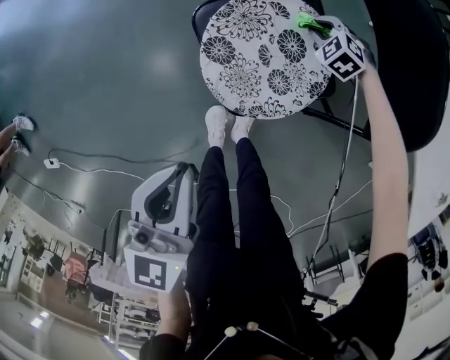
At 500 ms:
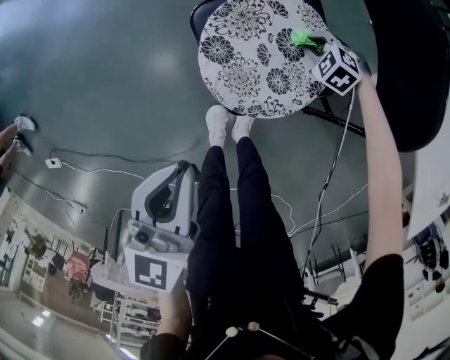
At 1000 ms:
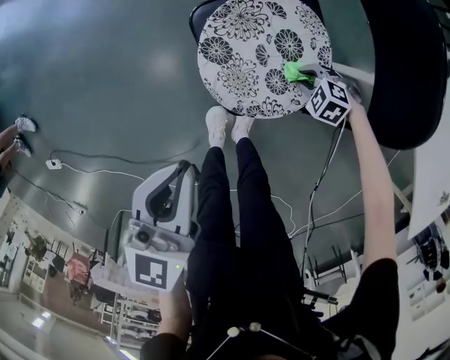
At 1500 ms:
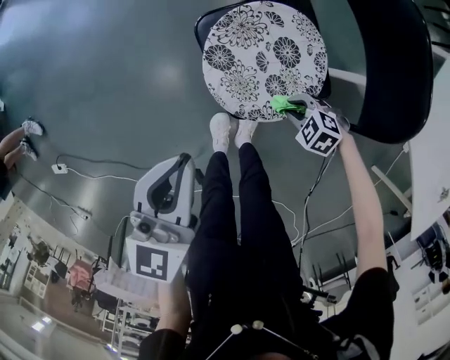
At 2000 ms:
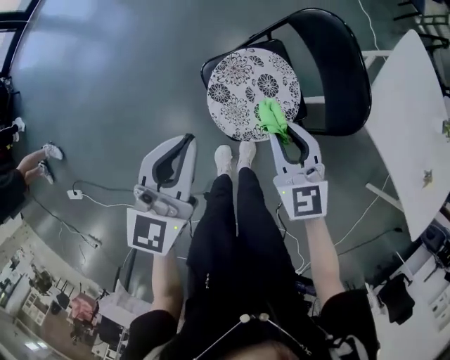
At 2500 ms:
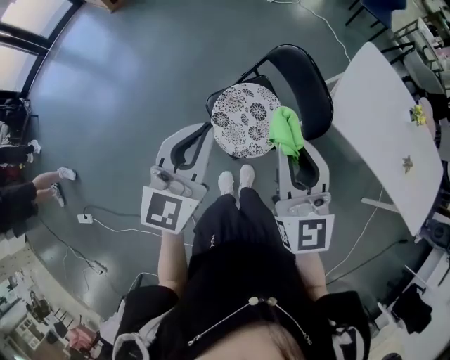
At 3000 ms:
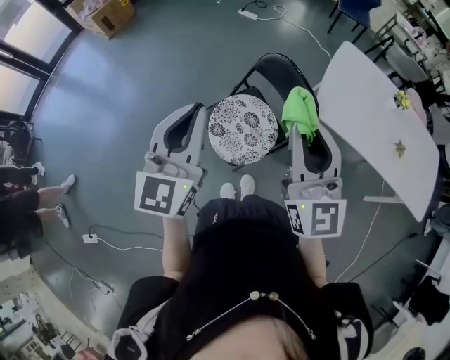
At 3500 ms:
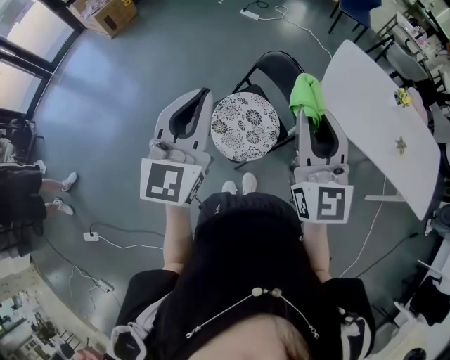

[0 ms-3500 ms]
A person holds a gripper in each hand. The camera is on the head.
0 ms to 2000 ms: The right gripper moves upward, roughly 40 cm, and points its fingers approximately 50 degrees further upward, while the left gripper shifts roughly 15 cm upward.
2000 ms to 3500 ms: Both grippers move upward, some 30 cm. The right gripper points its fingers about 30 degrees further upward.

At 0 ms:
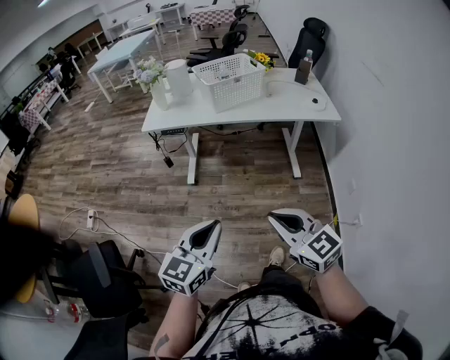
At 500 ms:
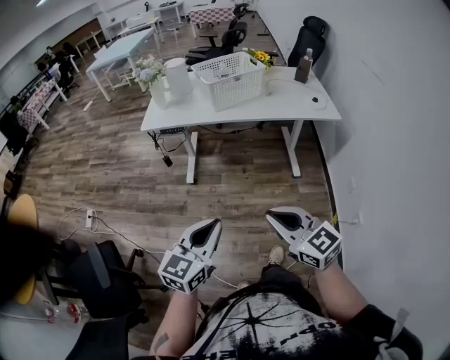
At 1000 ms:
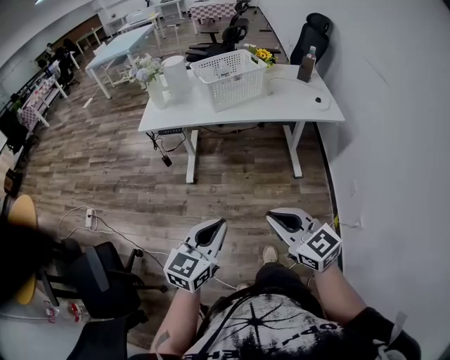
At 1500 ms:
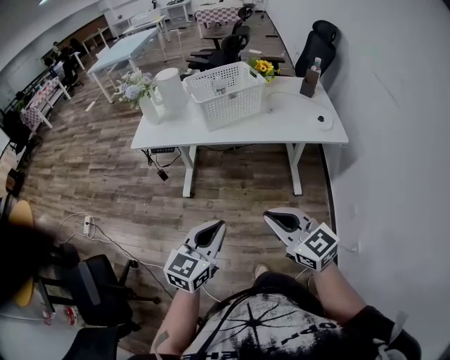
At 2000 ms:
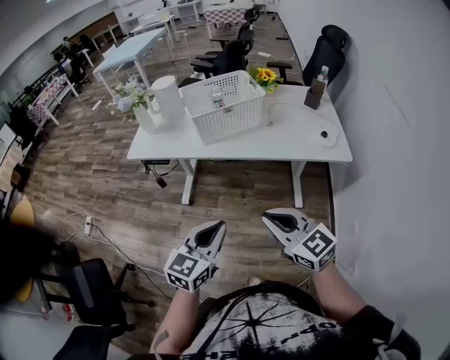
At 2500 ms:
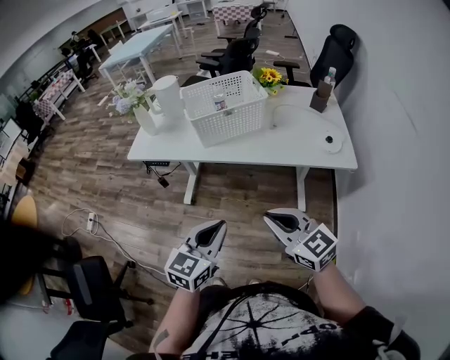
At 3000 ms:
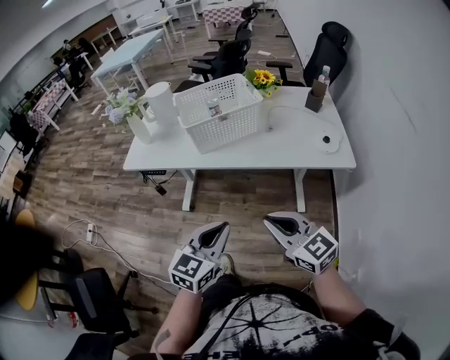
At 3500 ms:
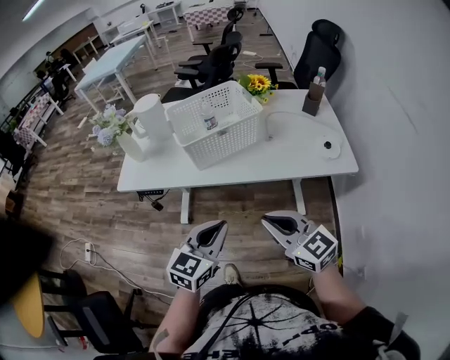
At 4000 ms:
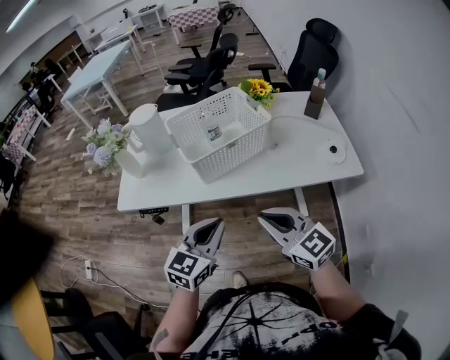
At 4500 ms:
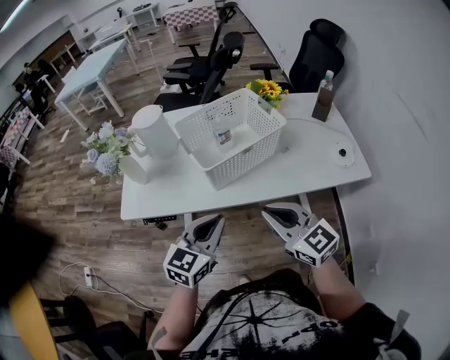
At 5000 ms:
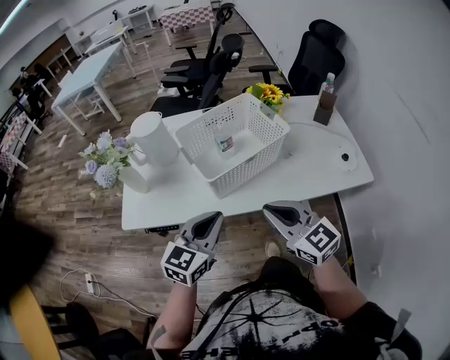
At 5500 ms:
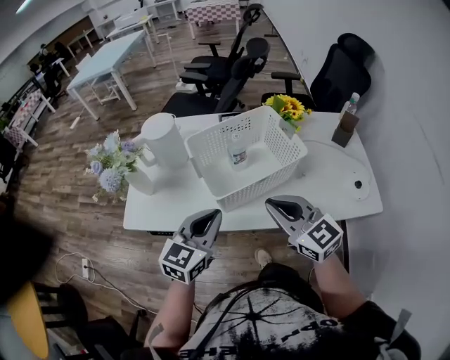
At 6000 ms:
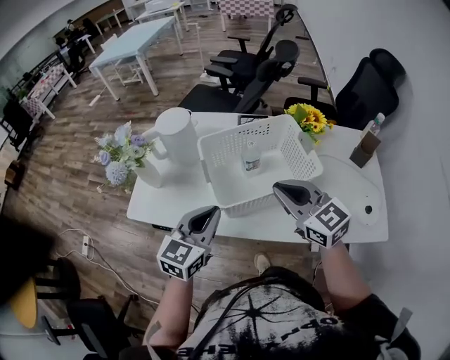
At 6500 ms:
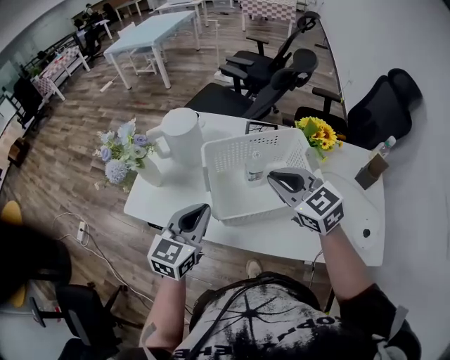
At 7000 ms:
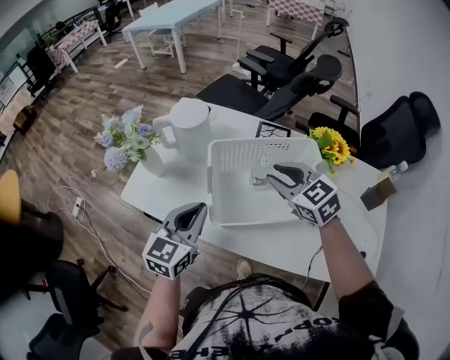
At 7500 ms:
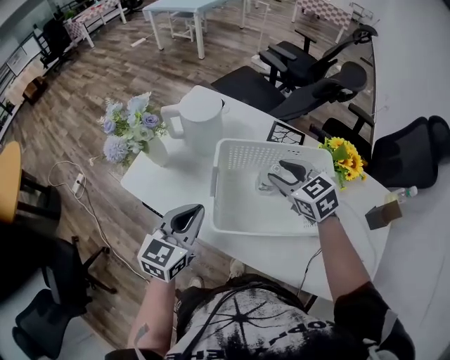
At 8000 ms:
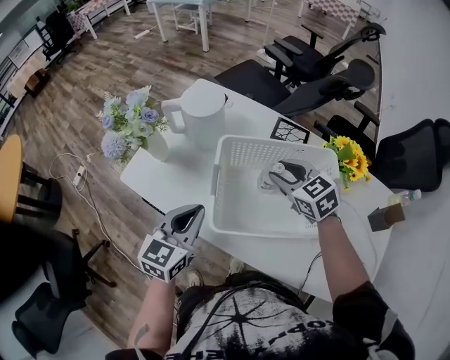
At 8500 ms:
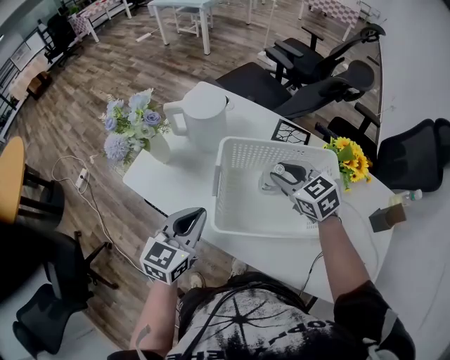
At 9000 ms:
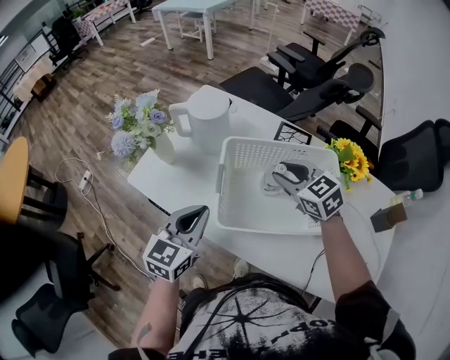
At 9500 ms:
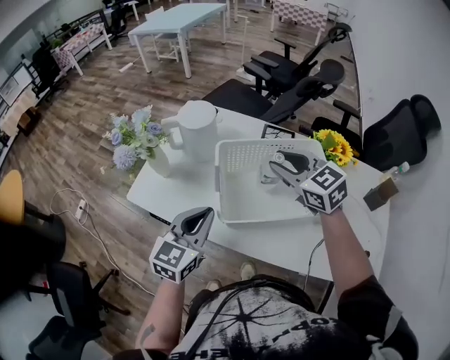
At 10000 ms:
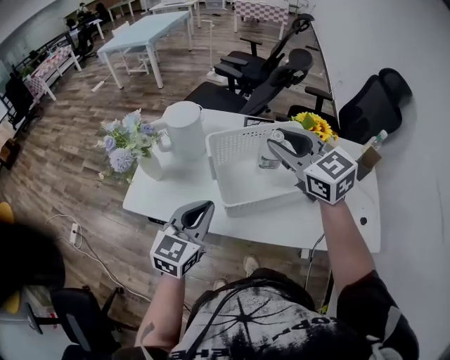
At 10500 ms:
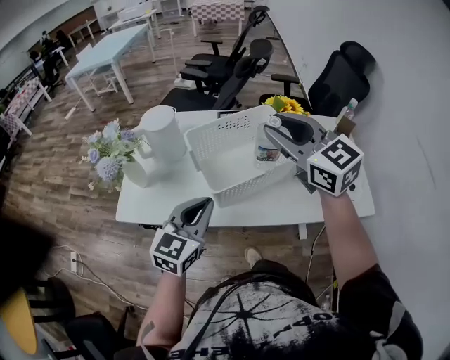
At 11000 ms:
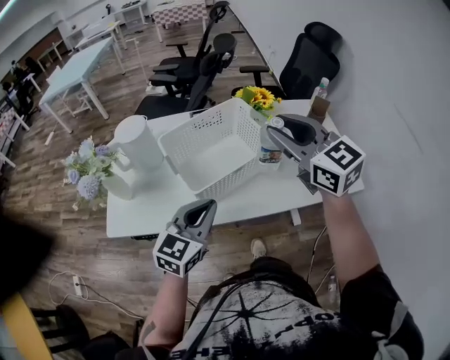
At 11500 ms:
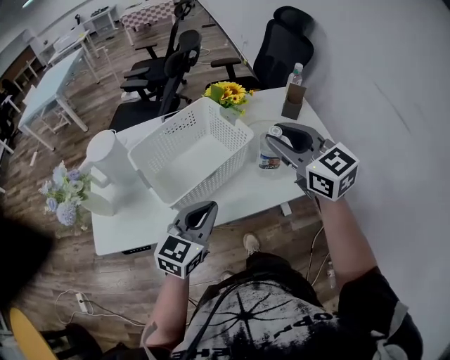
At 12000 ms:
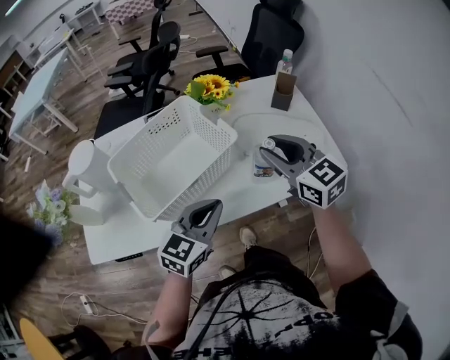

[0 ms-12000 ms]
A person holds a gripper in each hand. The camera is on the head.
0 ms to 2000 ms: Both grippers travel together forward and to the right, roughly 30 cm.
2000 ms to 4000 ms: The two grippers go about 20 cm forward.
4000 ms to 6000 ms: The two grippers go roughly 25 cm forward.
6000 ms to 8000 ms: The left gripper is displaced forward by about 5 cm, and swivels about 20 degrees. Meanwhile the right gripper moves forward and downward, some 20 cm, swivels some 30 degrees, and opens.
8000 ms to 10000 ms: The right gripper shifts about 20 cm upward and backward, and changes its angle by approximately 30 degrees. The left gripper travels upward by about 5 cm, and rotates roughly 20 degrees.
10000 ms to 12000 ms: The right gripper changes place by roughly 30 cm, and turns by about 30 degrees, while the left gripper shifts by approximately 25 cm, and turns by approximately 30 degrees.

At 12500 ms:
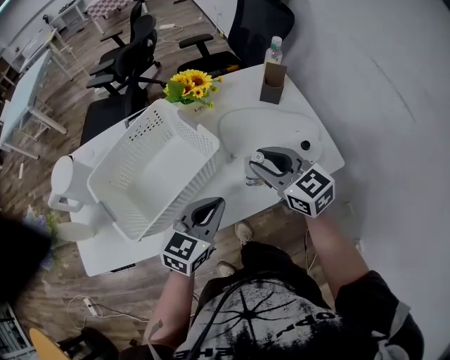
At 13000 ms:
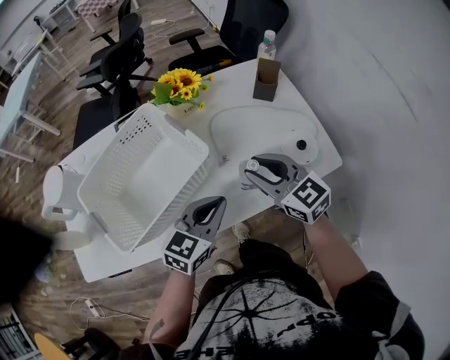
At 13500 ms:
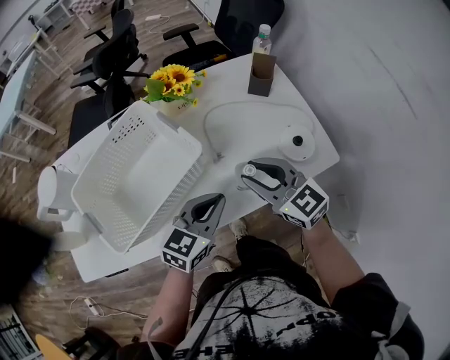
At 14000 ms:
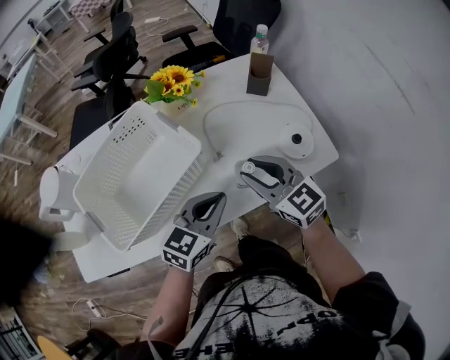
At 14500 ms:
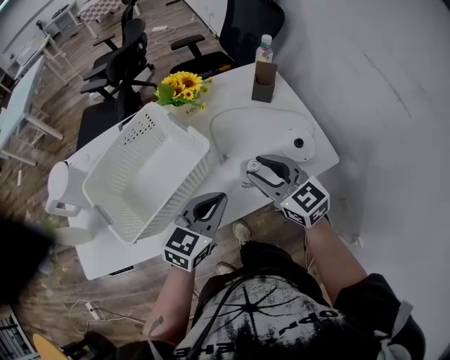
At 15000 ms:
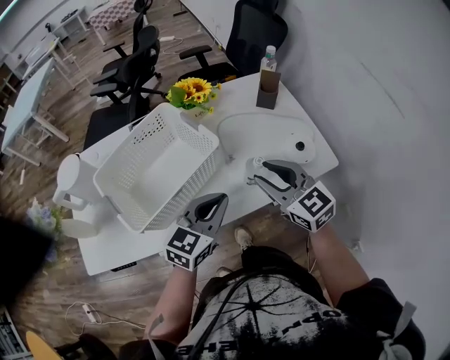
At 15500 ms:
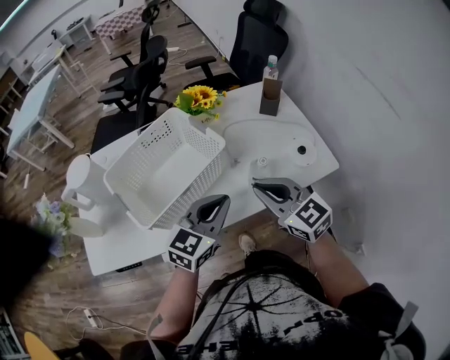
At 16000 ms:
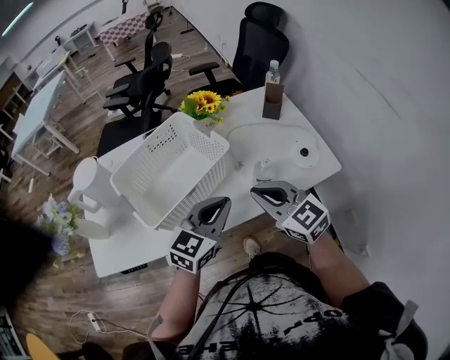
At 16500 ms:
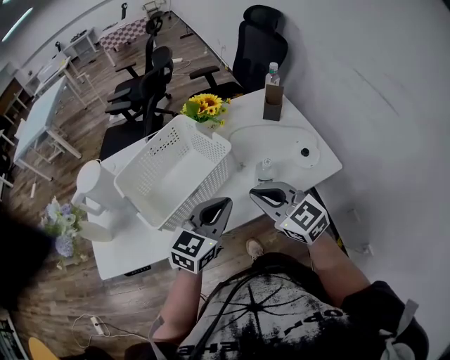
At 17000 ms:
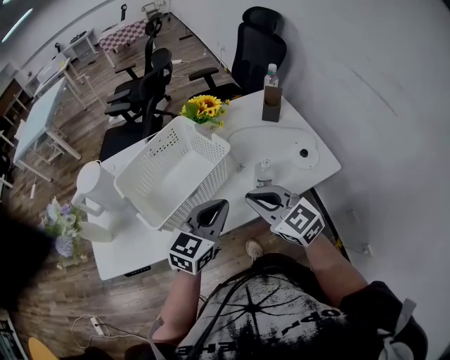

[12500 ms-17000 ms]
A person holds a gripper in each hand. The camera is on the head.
12500 ms to 14500 ms: The grippers move only a little.
14500 ms to 17000 ms: The left gripper shifts approximately 10 cm backward and to the left, while the right gripper travels backward and to the left by approximately 15 cm, and closes.

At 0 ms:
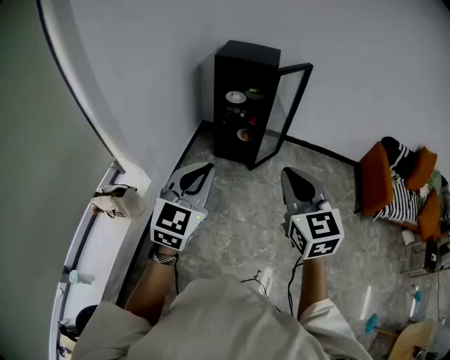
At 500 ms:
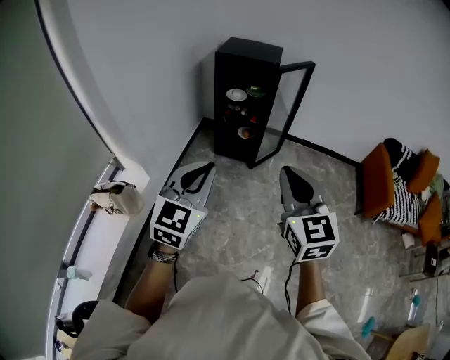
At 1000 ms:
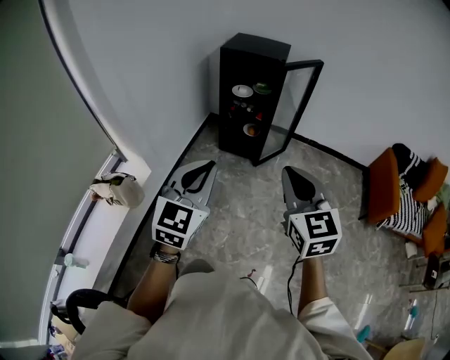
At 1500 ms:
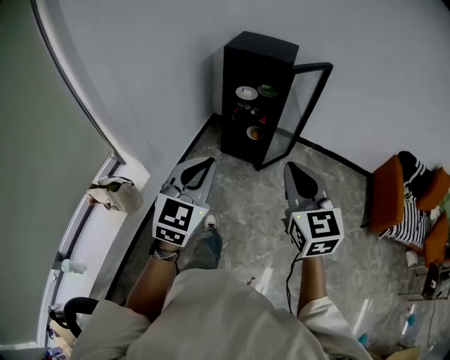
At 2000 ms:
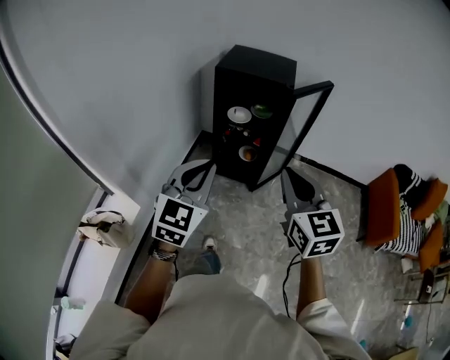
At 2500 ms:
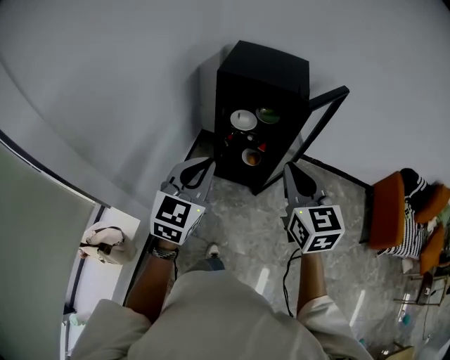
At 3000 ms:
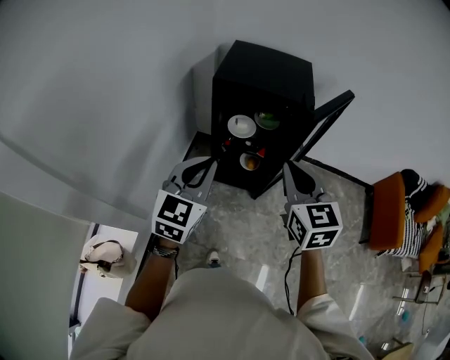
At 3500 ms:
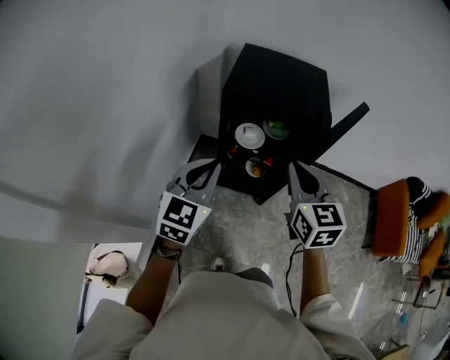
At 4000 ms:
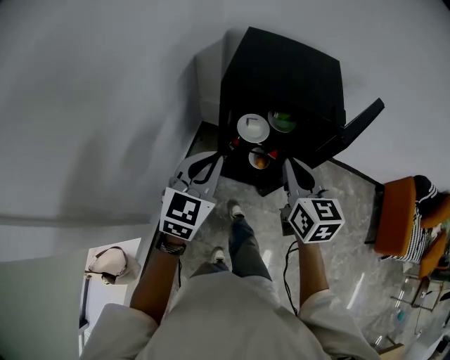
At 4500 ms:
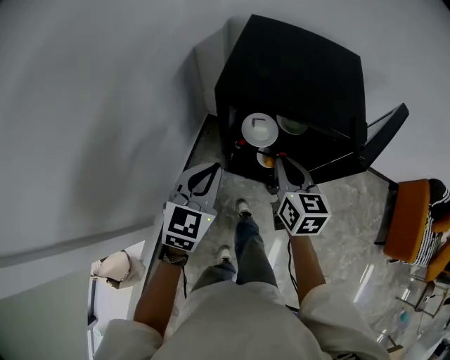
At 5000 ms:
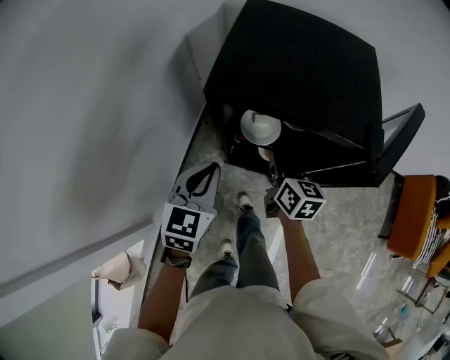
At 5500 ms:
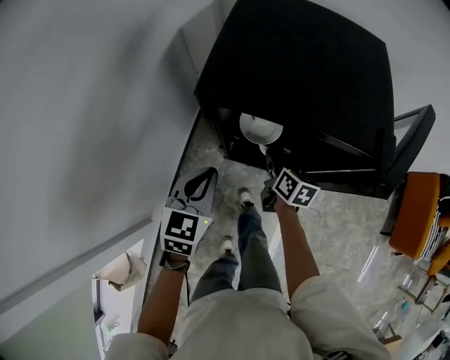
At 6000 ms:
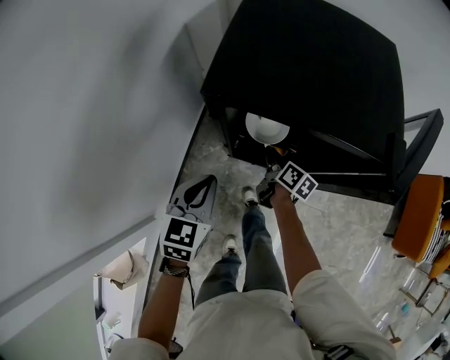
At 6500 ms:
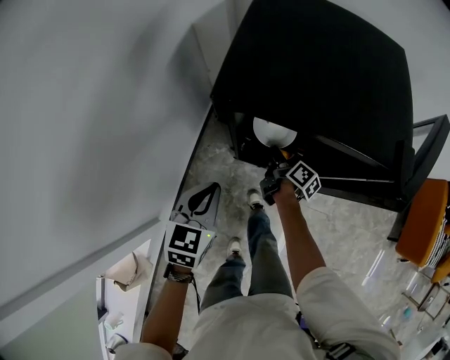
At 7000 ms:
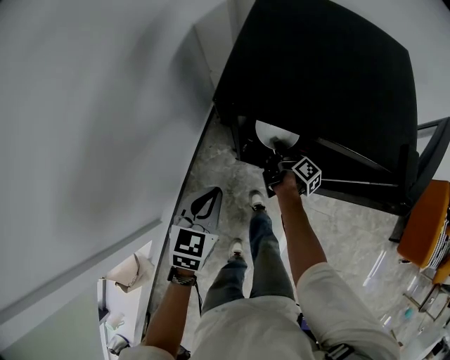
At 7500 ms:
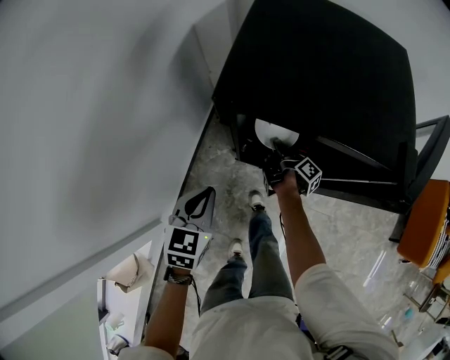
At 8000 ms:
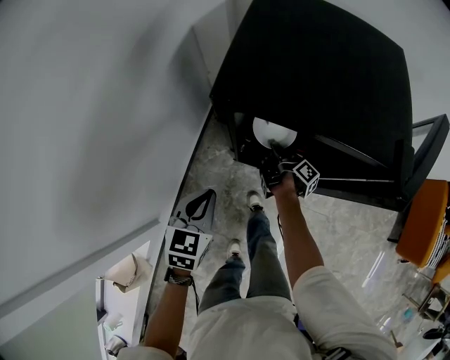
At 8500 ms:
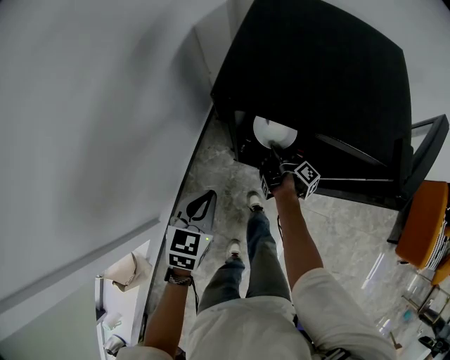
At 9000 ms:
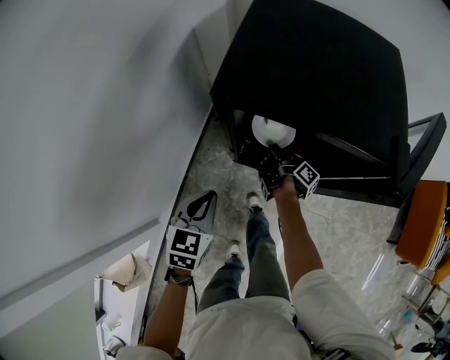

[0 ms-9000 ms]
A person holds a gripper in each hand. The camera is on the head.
0 ms to 2000 ms: Both grippers move forward, about 25 cm.
2000 ms to 4500 ms: The pair of grippers is taken forward, about 50 cm. The right gripper is displaced downward by about 20 cm, and changes its angle by approximately 20 degrees.
4500 ms to 7000 ms: The left gripper travels downward by some 15 cm. The right gripper is displaced downward and forward by roughly 30 cm, and twists some 80 degrees clockwise, seen from behind.
7000 ms to 9000 ms: The grippers stay close to where they were, moving slightly.
